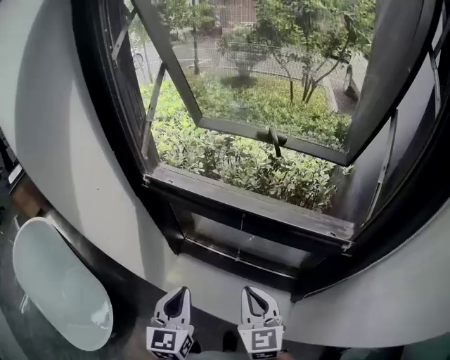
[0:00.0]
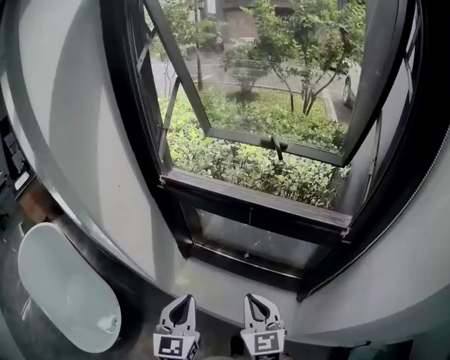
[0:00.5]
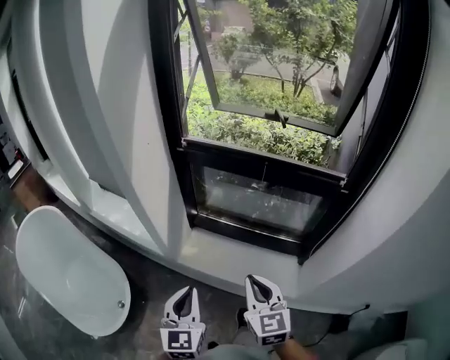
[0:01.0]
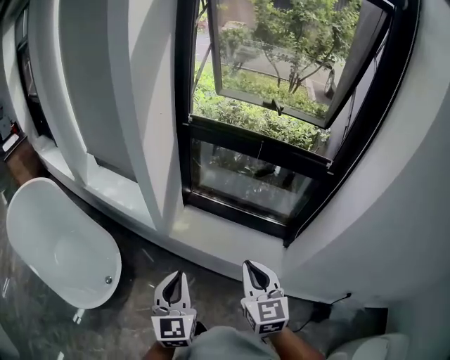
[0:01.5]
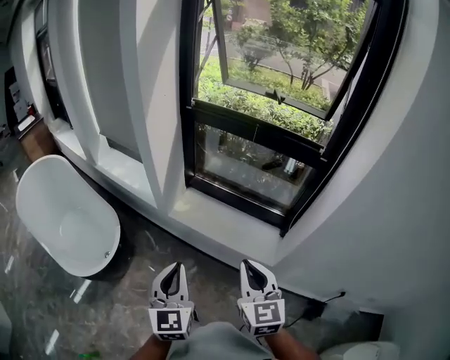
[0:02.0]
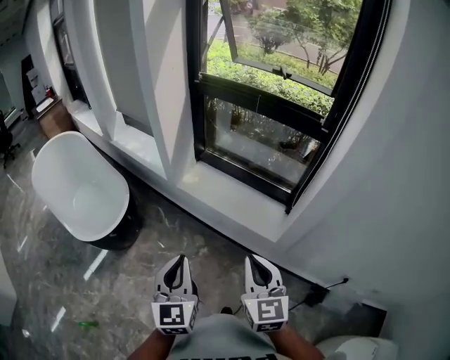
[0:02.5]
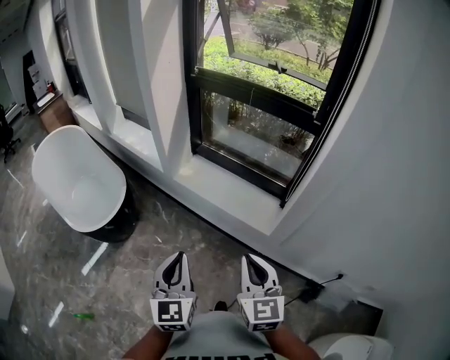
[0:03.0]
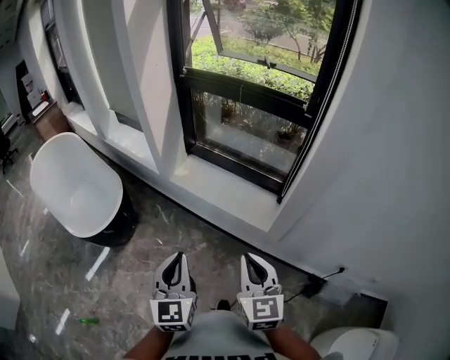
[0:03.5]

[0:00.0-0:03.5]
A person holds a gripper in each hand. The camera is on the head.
0:00.0 to 0:02.0: The pair of grippers is taken backward, roughly 40 cm.
0:02.0 to 0:03.5: Both grippers move backward and to the right, about 20 cm.

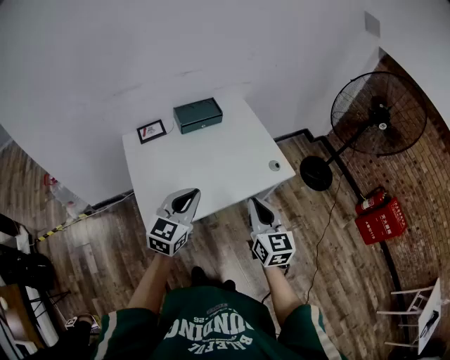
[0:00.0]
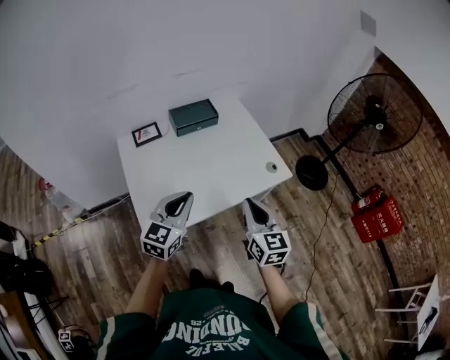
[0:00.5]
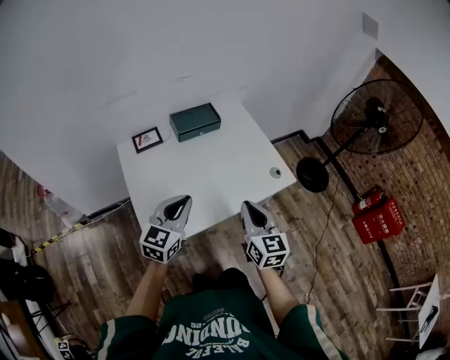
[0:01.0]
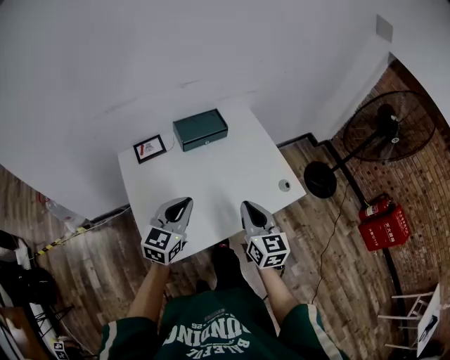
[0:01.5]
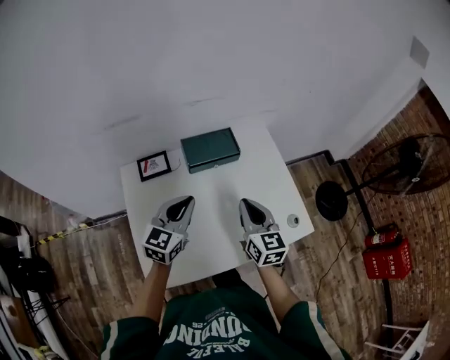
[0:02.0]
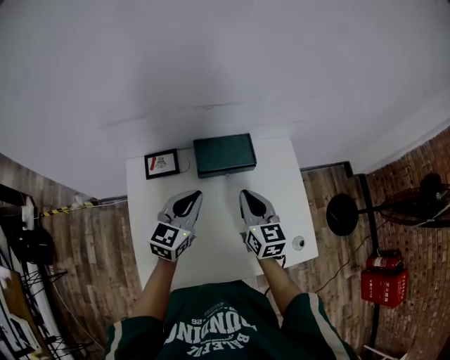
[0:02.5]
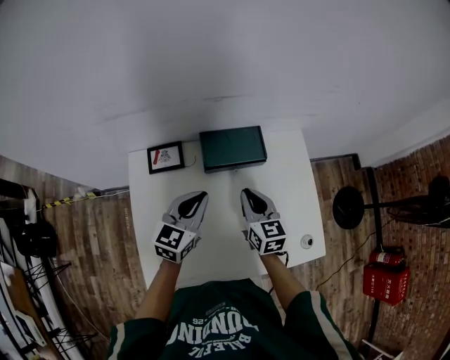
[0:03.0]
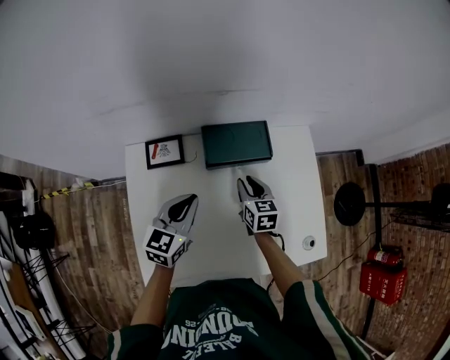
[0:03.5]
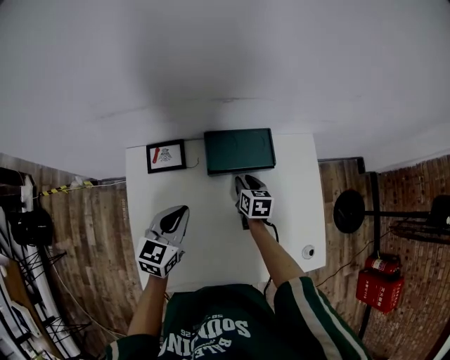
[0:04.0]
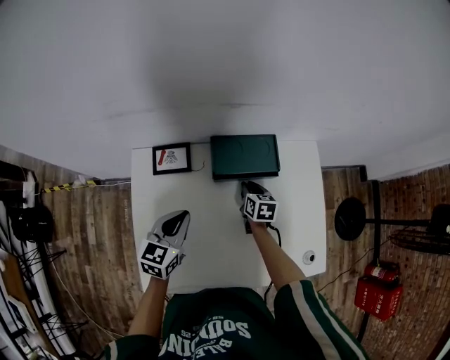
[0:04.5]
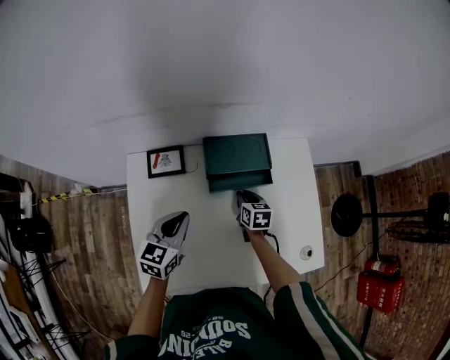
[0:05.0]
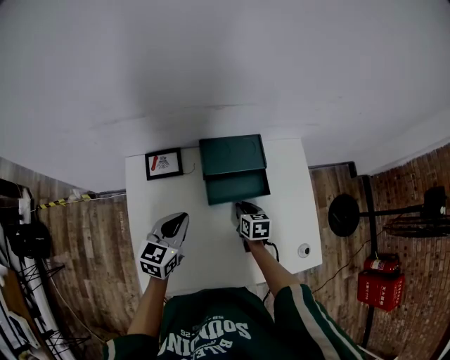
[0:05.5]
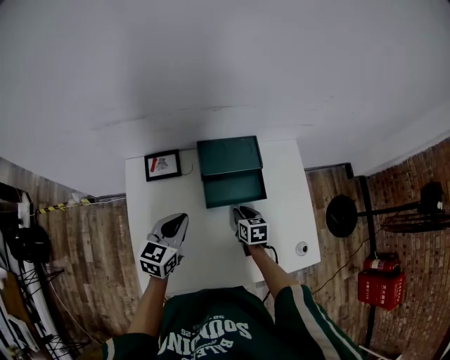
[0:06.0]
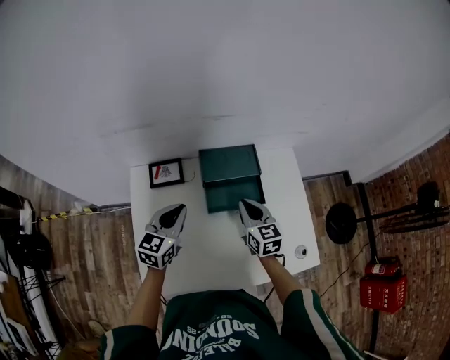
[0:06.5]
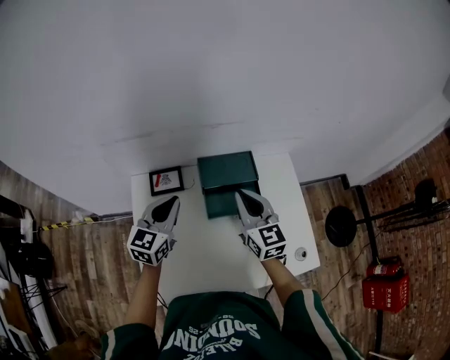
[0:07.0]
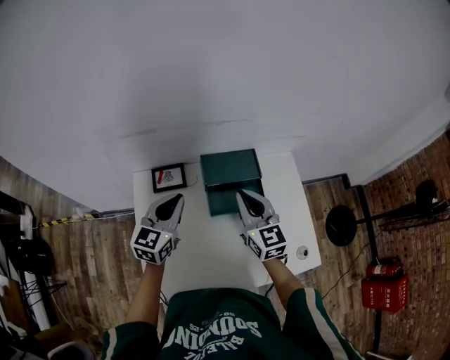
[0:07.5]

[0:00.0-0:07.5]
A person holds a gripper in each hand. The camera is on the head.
0:00.0 to 0:02.0: Both grippers move forward, some 25 cm.
0:02.0 to 0:04.0: The left gripper shifts some 15 cm downward, forward and to the left, and rotates roughly 20 degrees. The right gripper shifts about 35 cm downward and forward, points its fingers approximately 30 degrees further downward, and opens up.
0:04.0 to 0:05.5: The right gripper heads backward, covering about 10 cm.
0:05.5 to 0:07.5: The right gripper moves upward, about 30 cm, and angles its fingers upward, by some 40 degrees; the left gripper heads upward, covering about 10 cm.

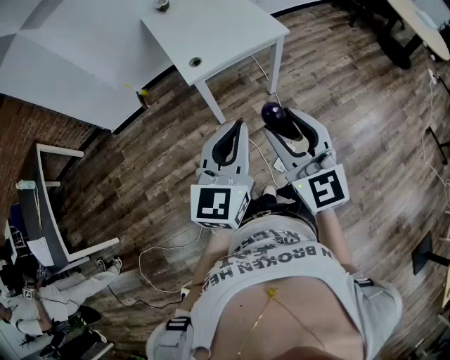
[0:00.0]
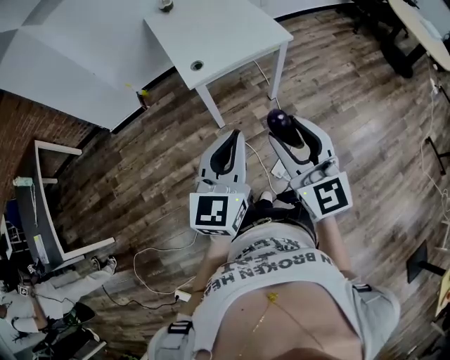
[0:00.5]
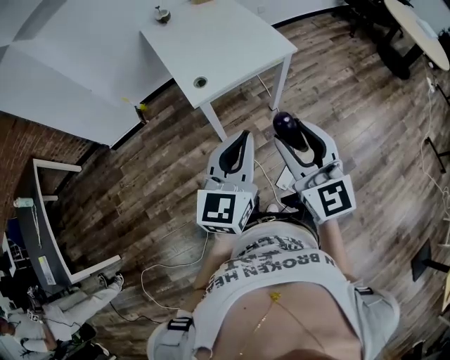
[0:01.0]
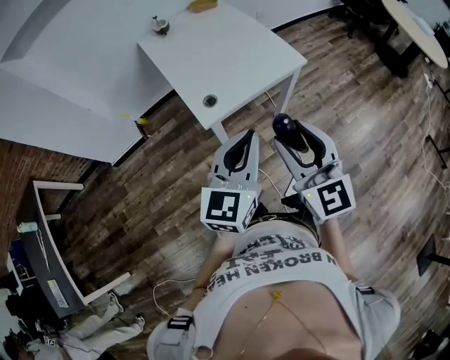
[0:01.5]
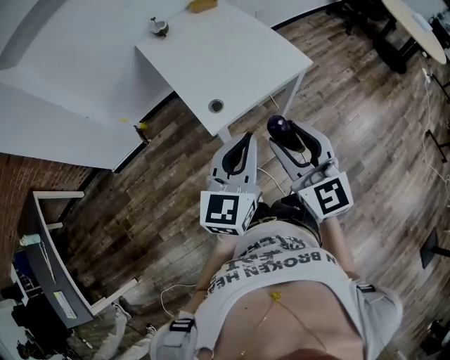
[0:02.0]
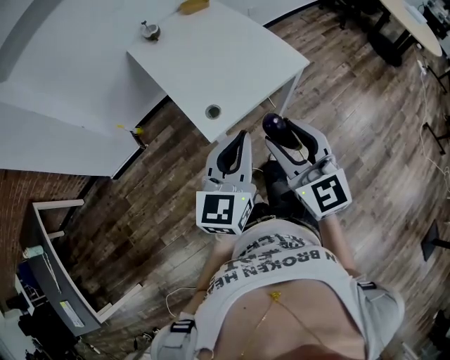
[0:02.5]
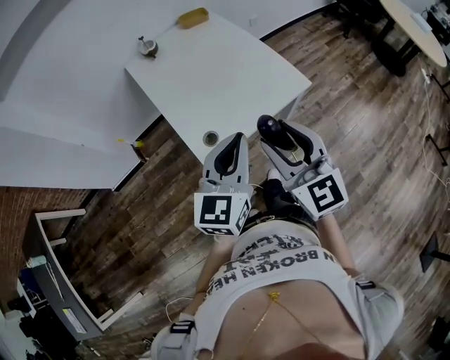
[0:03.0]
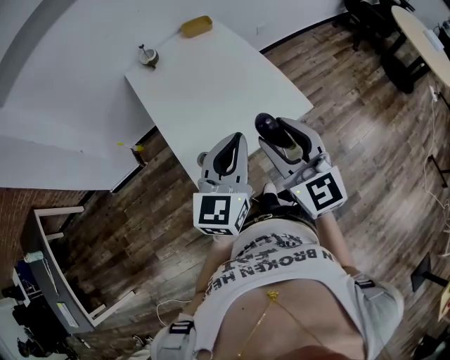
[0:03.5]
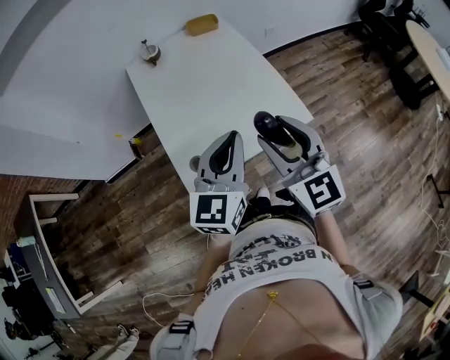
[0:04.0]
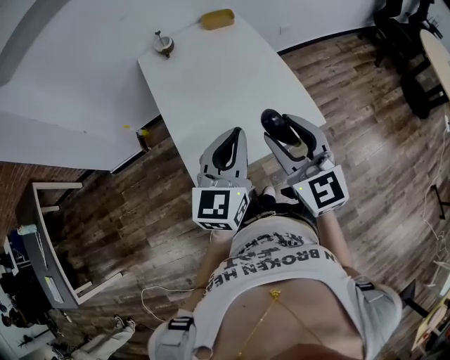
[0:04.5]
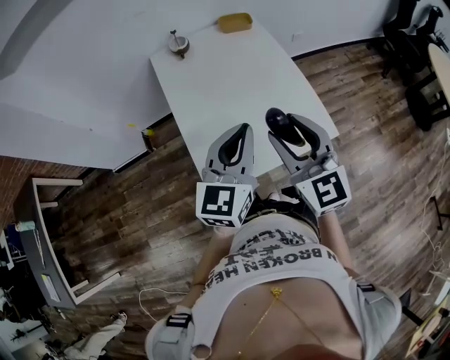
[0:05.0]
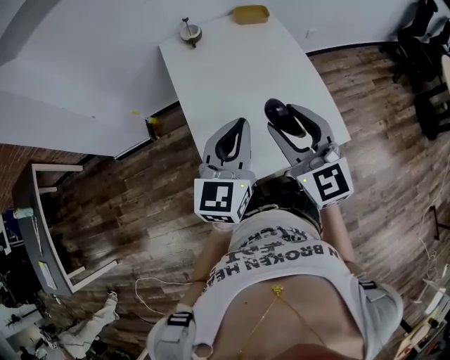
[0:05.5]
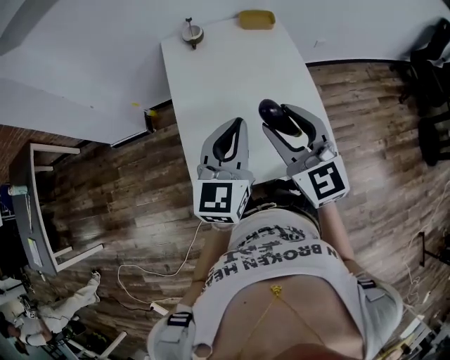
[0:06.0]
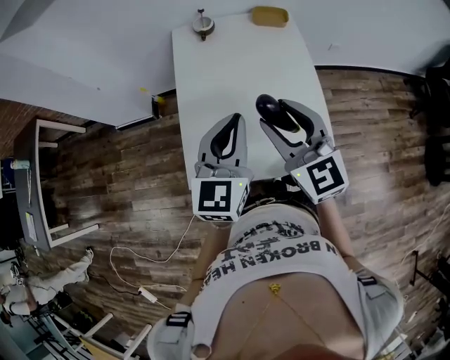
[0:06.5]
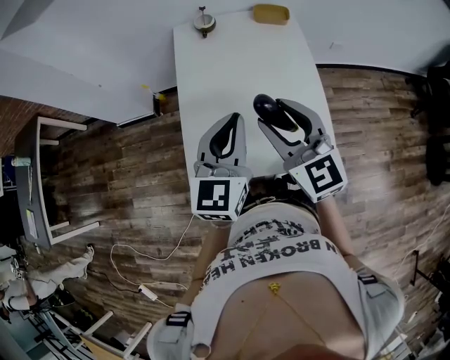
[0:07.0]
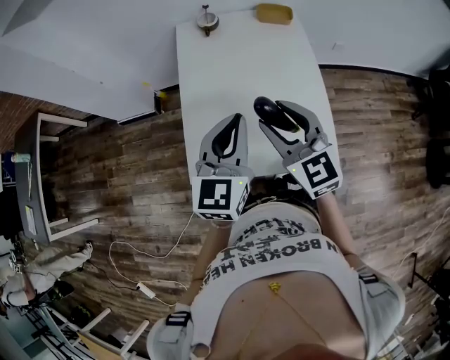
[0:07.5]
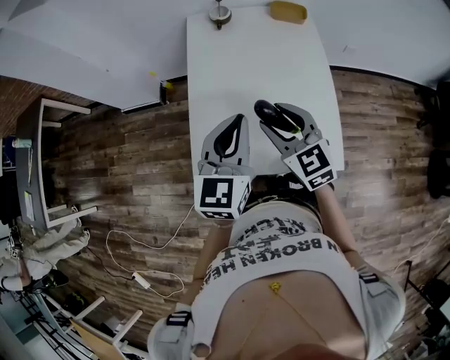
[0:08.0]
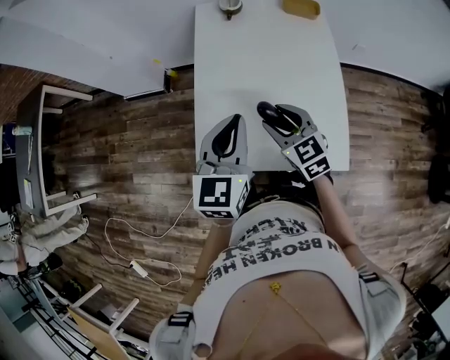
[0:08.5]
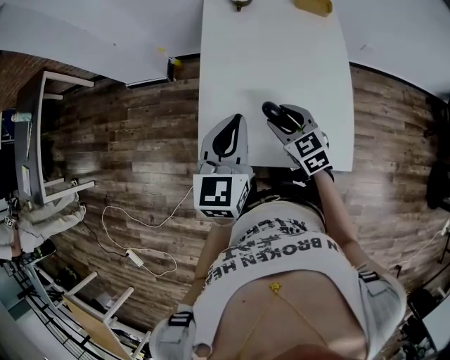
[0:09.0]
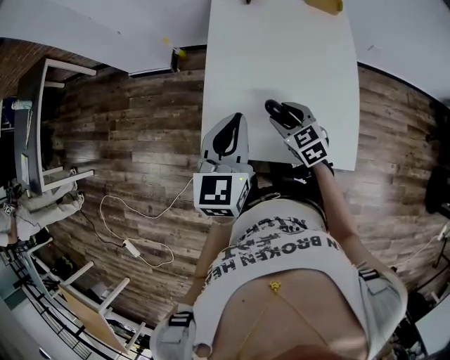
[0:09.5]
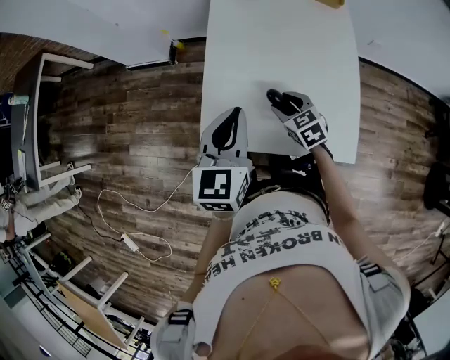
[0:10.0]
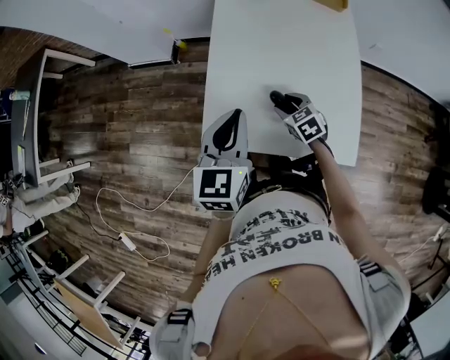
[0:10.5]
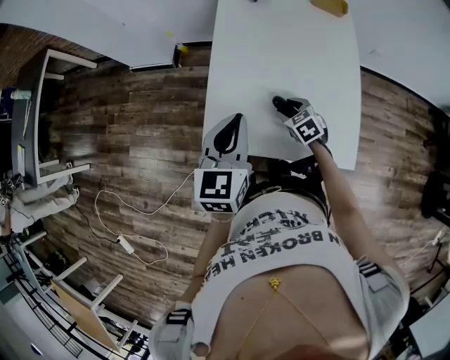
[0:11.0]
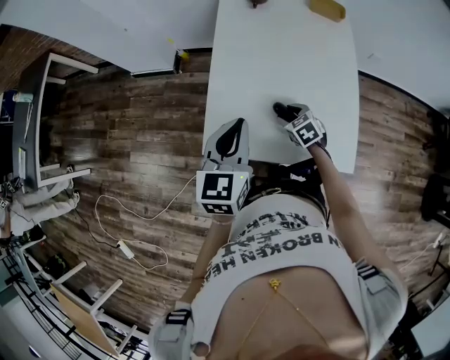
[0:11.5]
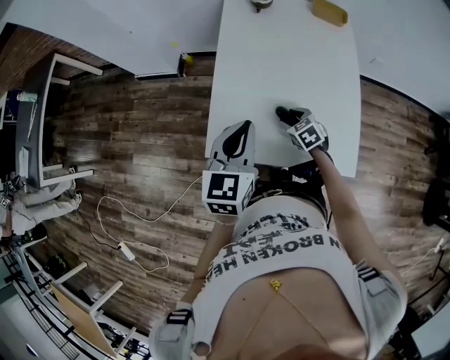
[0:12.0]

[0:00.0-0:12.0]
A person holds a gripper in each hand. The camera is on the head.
0:00.0 to 0:02.0: Both grippers travel together forward and to the left, some 25 cm.
0:02.0 to 0:04.0: Both grippers travel together forward and to the right, roughly 30 cm.
0:04.0 to 0:06.0: The left gripper is displaced forward and to the left by some 15 cm. The right gripper moves forward, approximately 15 cm.
0:06.0 to 0:08.0: The right gripper travels downward by approximately 10 cm.
0:08.0 to 0:10.0: The right gripper travels downward by some 20 cm, and changes its angle by about 30 degrees, while the left gripper goes about 10 cm to the left and downward.
0:10.0 to 0:12.0: The right gripper moves downward, roughly 5 cm.

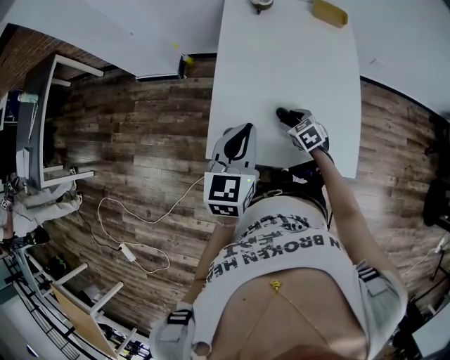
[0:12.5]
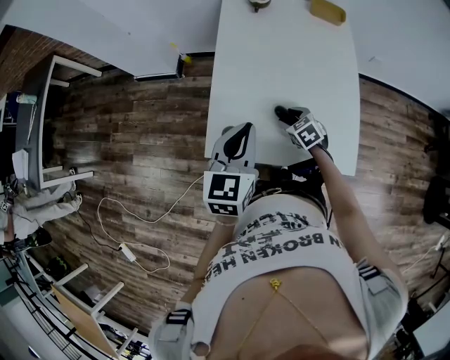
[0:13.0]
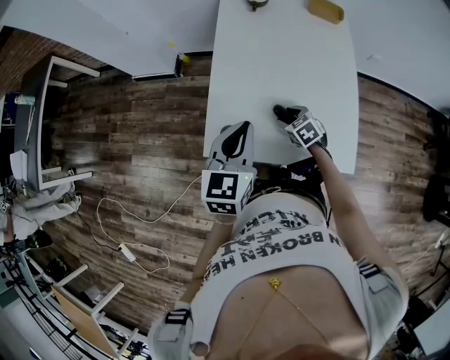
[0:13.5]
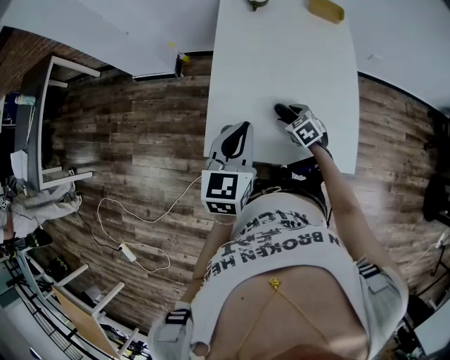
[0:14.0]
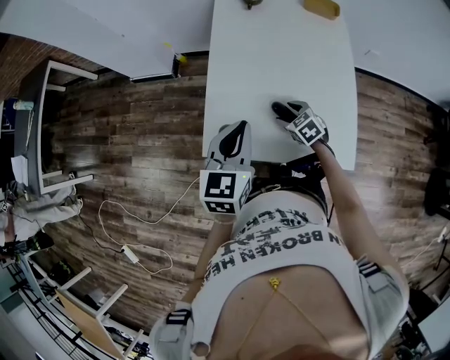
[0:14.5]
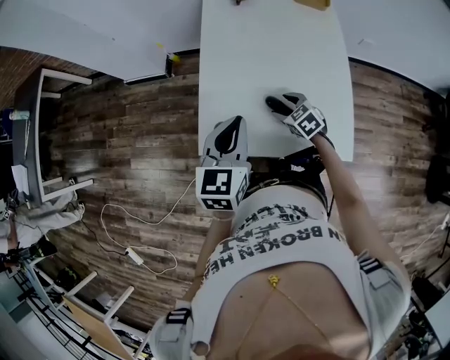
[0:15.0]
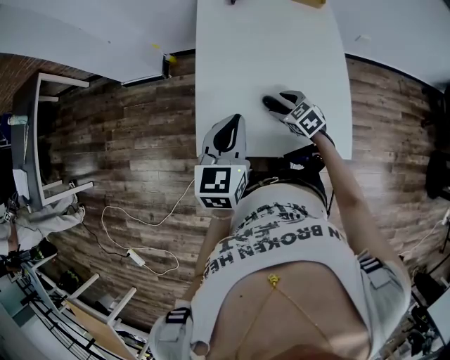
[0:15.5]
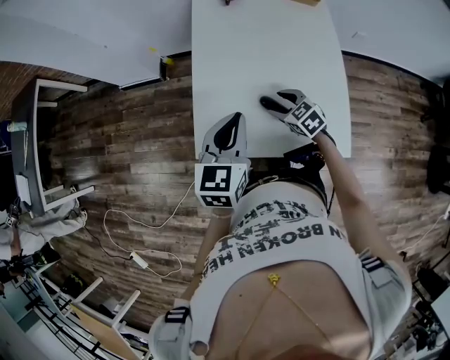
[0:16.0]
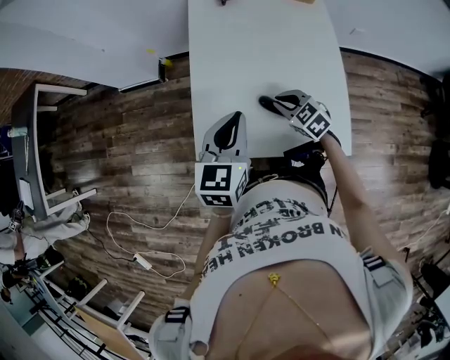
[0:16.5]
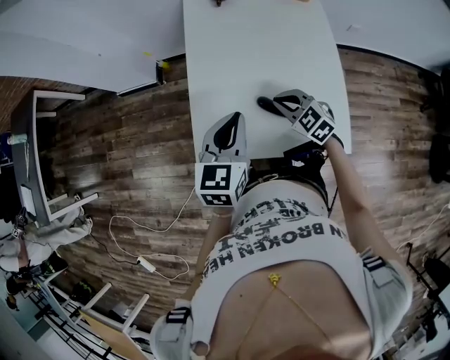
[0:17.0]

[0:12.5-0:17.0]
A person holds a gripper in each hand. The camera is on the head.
0:12.5 to 0:14.5: The two grippers keep their place.
0:14.5 to 0:17.0: The right gripper moves upward, some 10 cm, and closes up.
